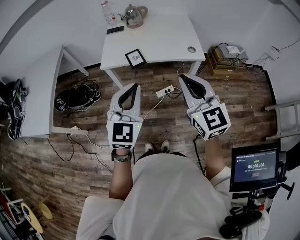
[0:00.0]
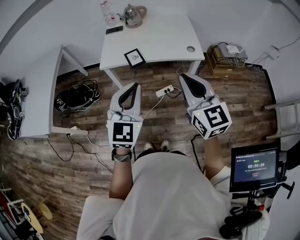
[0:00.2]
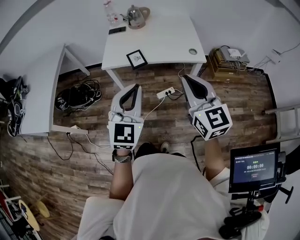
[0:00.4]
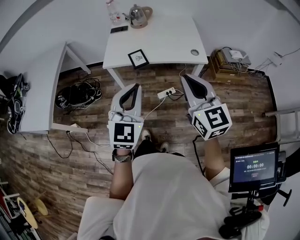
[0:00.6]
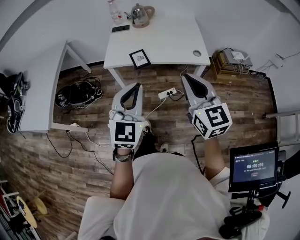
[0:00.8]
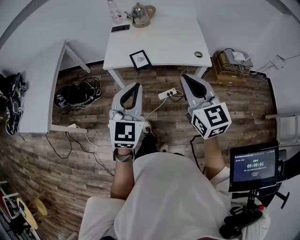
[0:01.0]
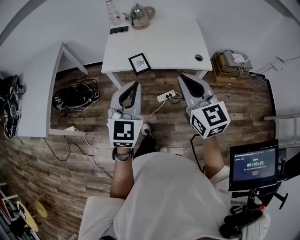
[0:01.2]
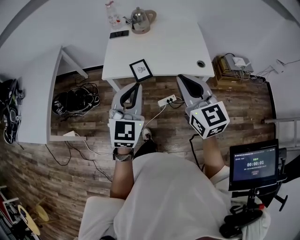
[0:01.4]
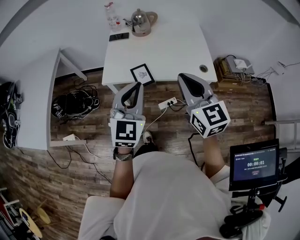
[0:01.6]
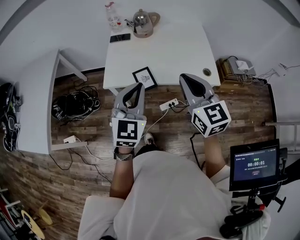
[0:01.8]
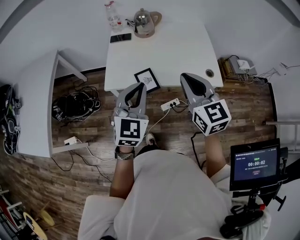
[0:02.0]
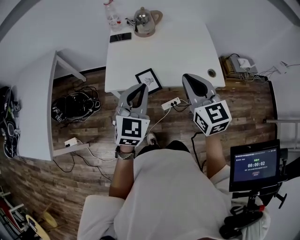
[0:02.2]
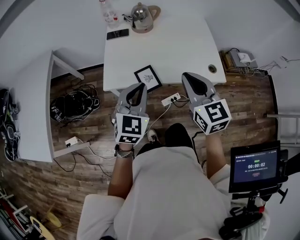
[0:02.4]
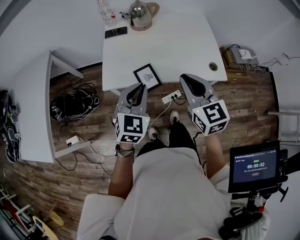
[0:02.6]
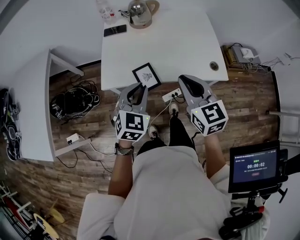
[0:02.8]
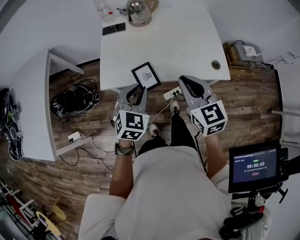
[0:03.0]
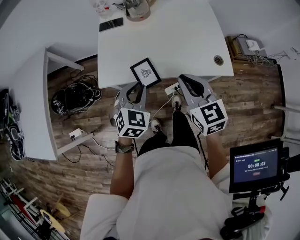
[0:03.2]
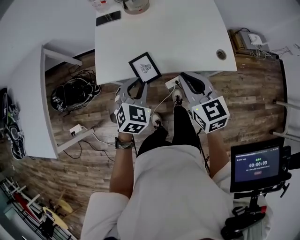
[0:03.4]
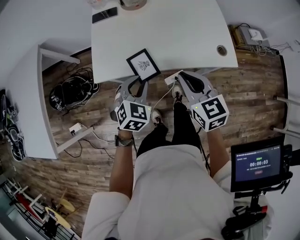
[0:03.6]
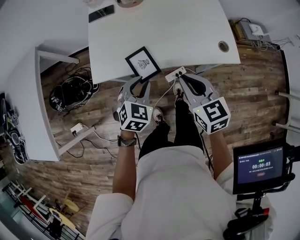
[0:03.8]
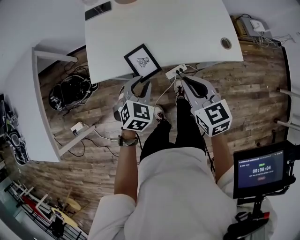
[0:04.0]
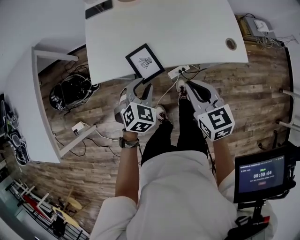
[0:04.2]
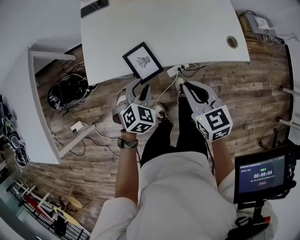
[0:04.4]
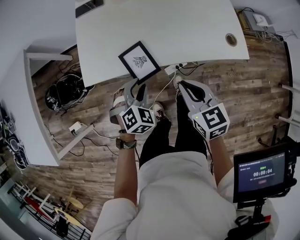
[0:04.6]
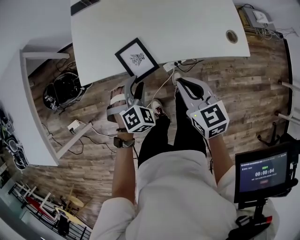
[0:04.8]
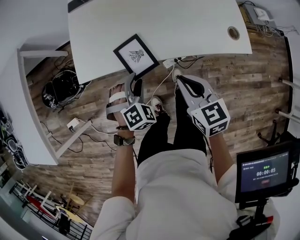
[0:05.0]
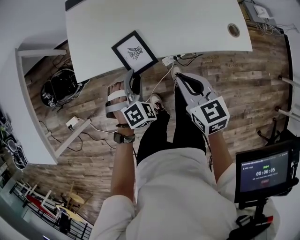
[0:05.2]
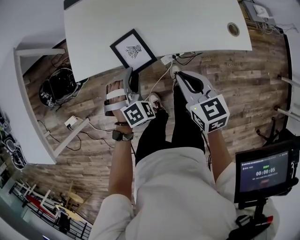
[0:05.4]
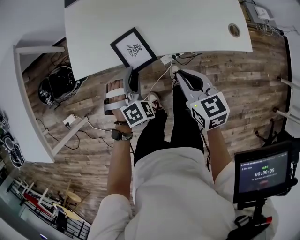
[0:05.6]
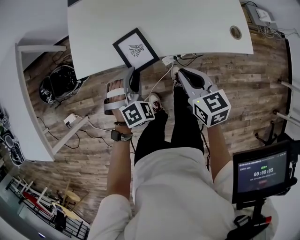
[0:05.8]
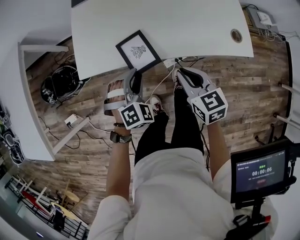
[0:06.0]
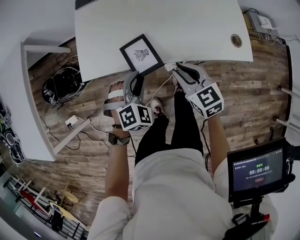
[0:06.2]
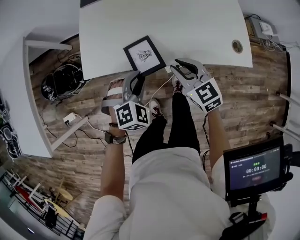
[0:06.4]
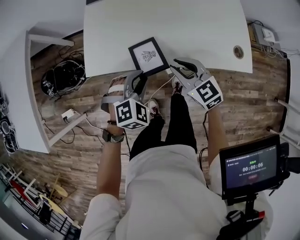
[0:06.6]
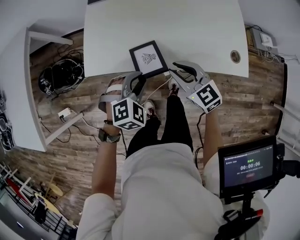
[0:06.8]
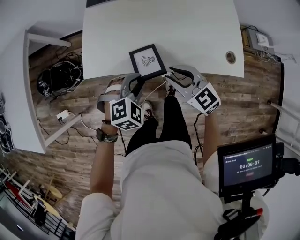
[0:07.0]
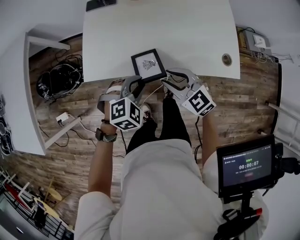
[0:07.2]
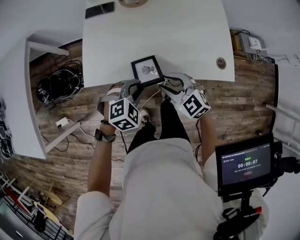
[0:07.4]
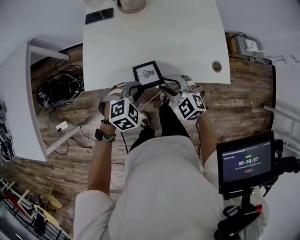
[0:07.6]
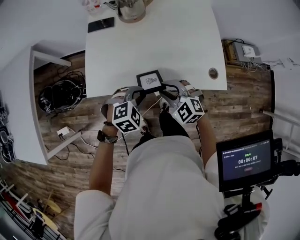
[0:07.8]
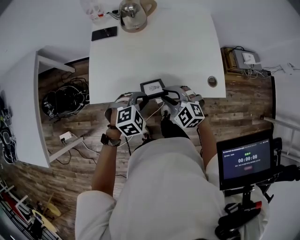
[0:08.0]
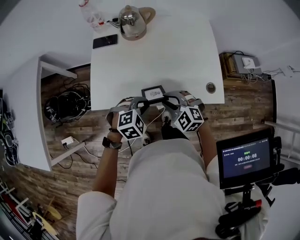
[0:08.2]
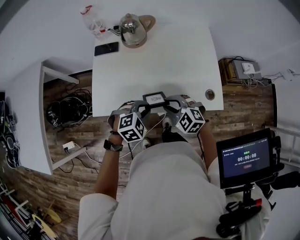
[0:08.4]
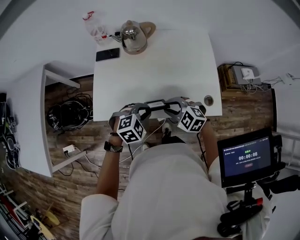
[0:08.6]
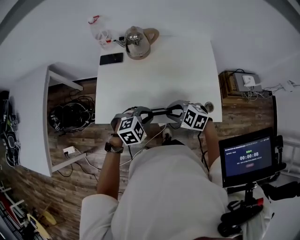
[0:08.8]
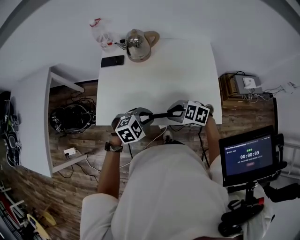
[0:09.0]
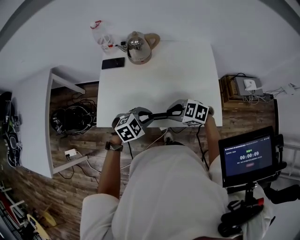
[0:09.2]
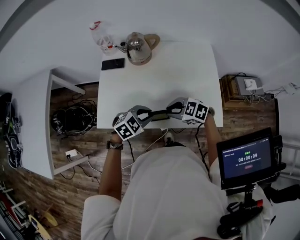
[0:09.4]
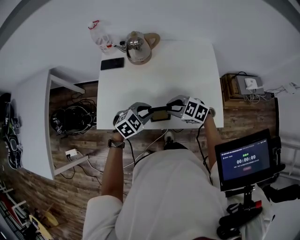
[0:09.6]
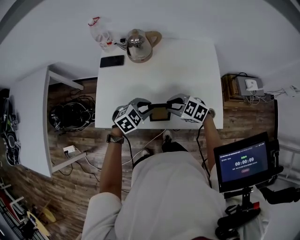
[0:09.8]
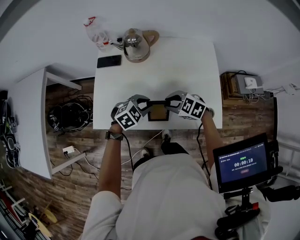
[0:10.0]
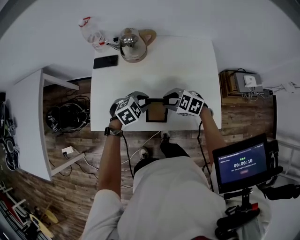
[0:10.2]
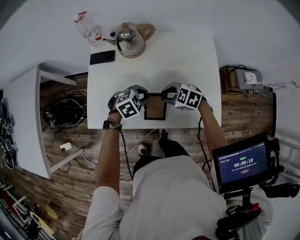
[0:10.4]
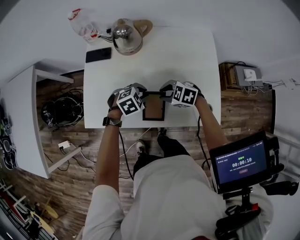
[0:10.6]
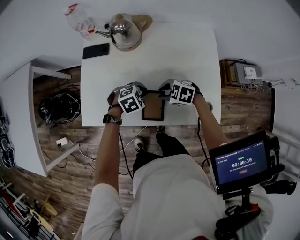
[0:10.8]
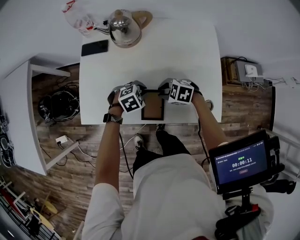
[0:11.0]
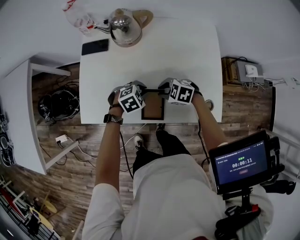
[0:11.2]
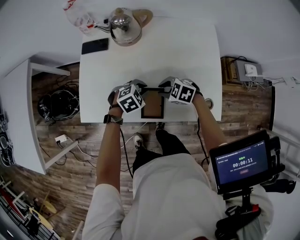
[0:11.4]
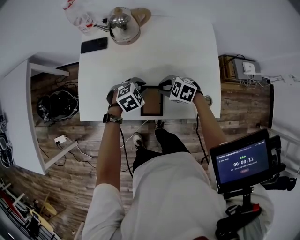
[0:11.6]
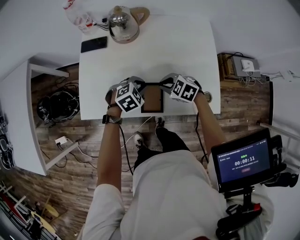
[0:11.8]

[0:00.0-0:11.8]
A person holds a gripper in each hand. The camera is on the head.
0:00.0 to 0:01.4: The grippers both shift forward by roughly 15 cm.
0:01.4 to 0:03.0: Both grippers move forward and downward, about 25 cm. The left gripper swivels approximately 30 degrees.
0:03.0 to 0:04.4: Both grippers travel together downward, roughly 20 cm. The left gripper turns by approximately 20 degrees.
0:04.4 to 0:06.0: The right gripper moves downward, some 5 cm; the left gripper swivels approximately 20 degrees.
0:06.0 to 0:07.4: The right gripper moves some 5 cm, rotates some 40 degrees, and opens up, while the left gripper moves upward, some 5 cm, and rotates roughly 20 degrees.
0:07.4 to 0:08.8: The right gripper ends up approximately 10 cm from where it was, and turns by roughly 20 degrees. Meanwhile the left gripper shifts by approximately 10 cm.
0:08.8 to 0:10.4: The left gripper ends up roughly 10 cm from where it was. Meanwhile the right gripper changes place by about 10 cm.
0:10.4 to 0:11.8: The right gripper closes up.

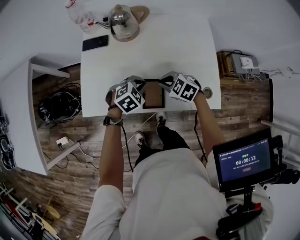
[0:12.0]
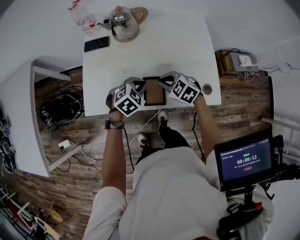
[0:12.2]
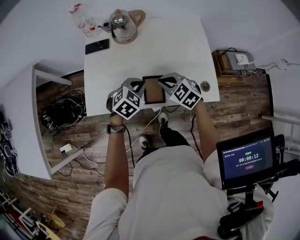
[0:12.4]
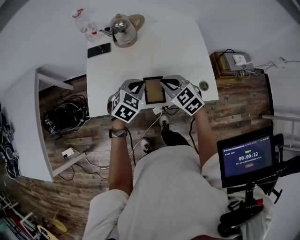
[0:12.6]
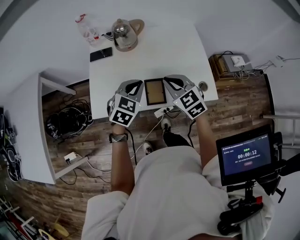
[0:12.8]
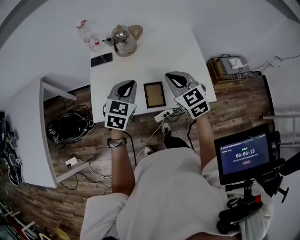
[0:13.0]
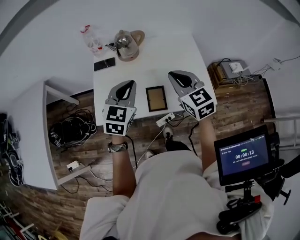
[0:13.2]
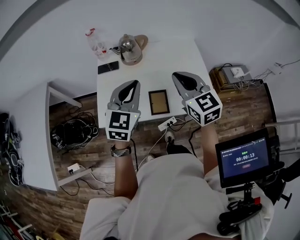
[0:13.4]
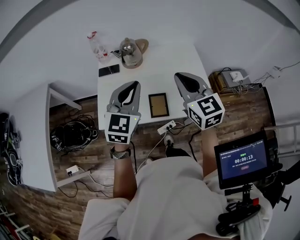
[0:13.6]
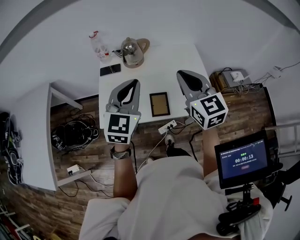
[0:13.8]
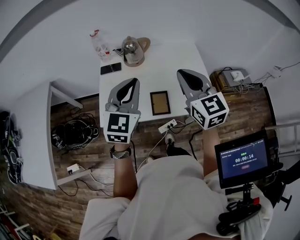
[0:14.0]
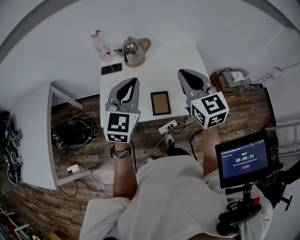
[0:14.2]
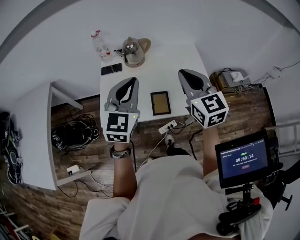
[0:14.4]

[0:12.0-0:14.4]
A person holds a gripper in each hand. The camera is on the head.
0:12.0 to 0:13.2: The grippers both shift upward by some 25 cm. The left gripper angles its fingers upward, by approximately 40 degrees. Meanwhile the right gripper tips its fingers upward by about 30 degrees.
0:13.2 to 0:14.4: Both grippers move upward, about 10 cm.

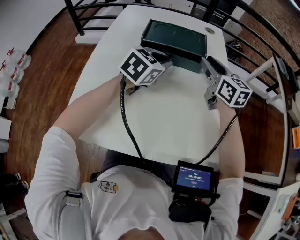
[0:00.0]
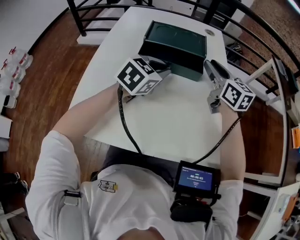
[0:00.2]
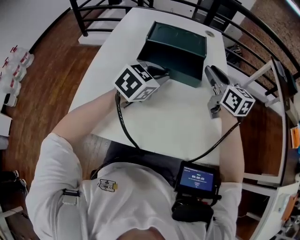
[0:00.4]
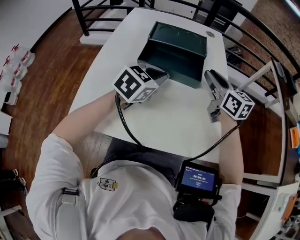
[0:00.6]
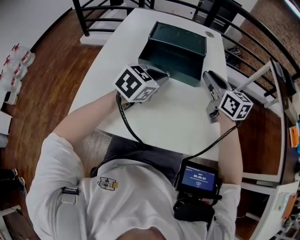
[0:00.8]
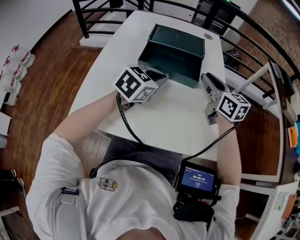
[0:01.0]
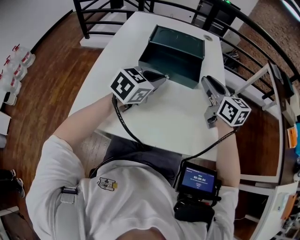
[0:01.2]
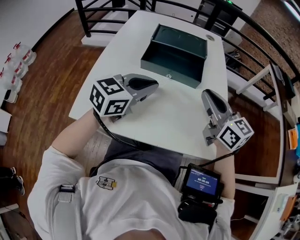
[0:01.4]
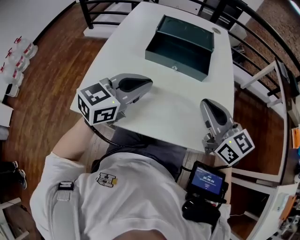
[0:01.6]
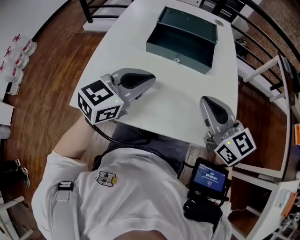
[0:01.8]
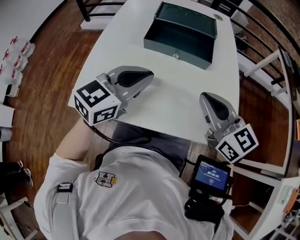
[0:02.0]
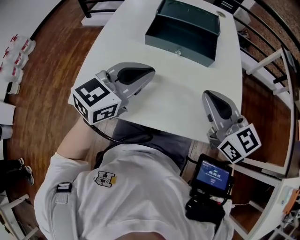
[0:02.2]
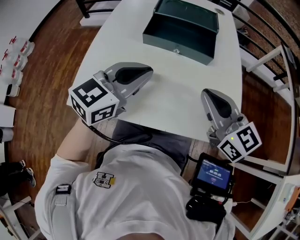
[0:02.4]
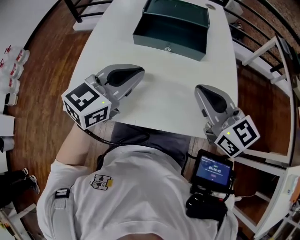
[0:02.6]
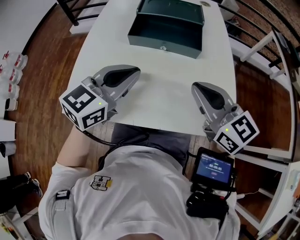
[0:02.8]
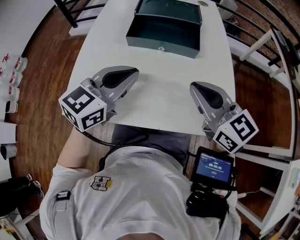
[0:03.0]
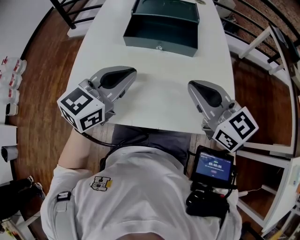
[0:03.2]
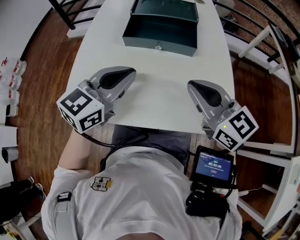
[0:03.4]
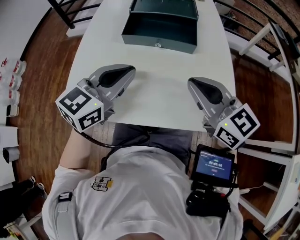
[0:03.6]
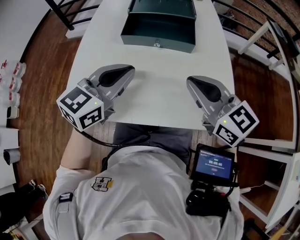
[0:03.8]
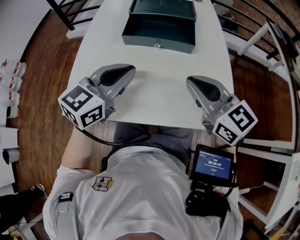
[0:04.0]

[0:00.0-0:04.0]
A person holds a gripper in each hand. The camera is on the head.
0:00.0 to 0:01.4: Both grippers move backward, about 20 cm. The right gripper closes.
0:01.4 to 0:02.6: The right gripper travels backward by about 5 cm.
0:02.6 to 0:04.0: The two grippers keep their place.

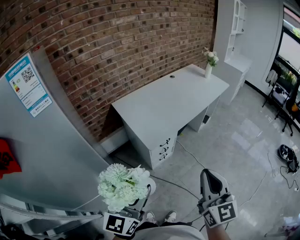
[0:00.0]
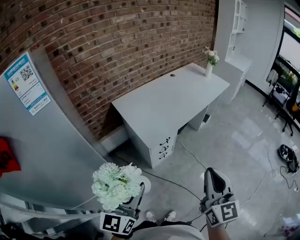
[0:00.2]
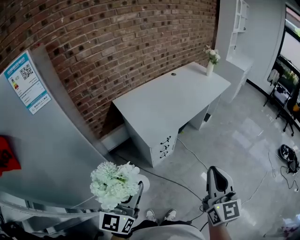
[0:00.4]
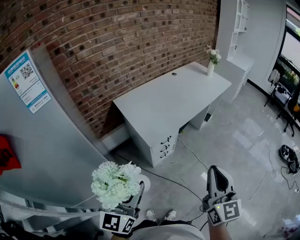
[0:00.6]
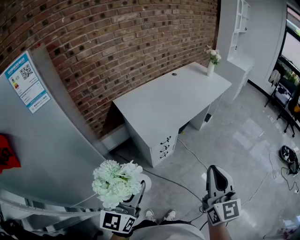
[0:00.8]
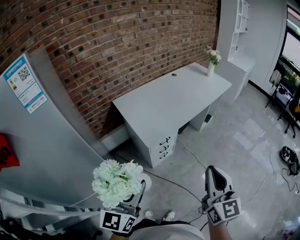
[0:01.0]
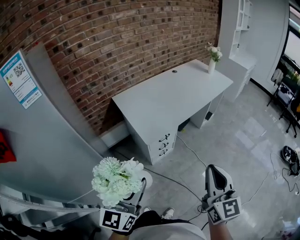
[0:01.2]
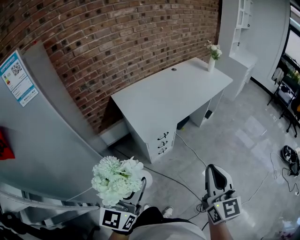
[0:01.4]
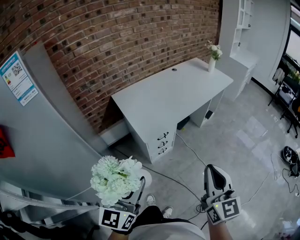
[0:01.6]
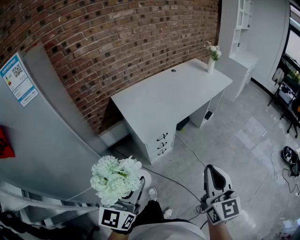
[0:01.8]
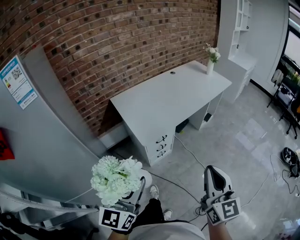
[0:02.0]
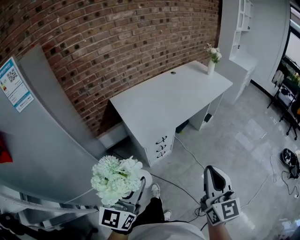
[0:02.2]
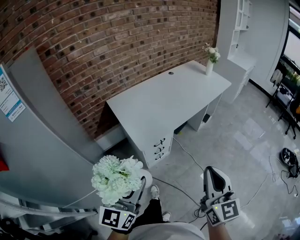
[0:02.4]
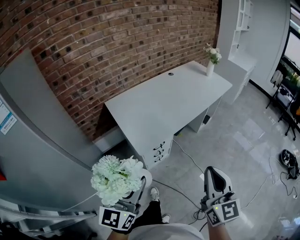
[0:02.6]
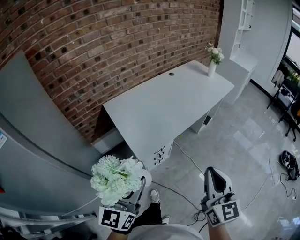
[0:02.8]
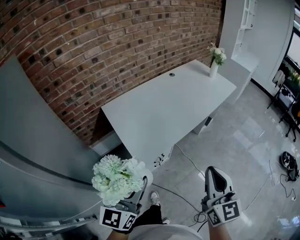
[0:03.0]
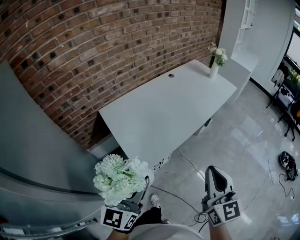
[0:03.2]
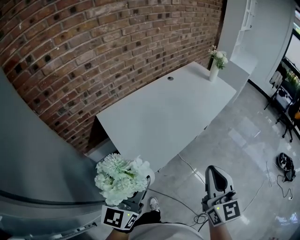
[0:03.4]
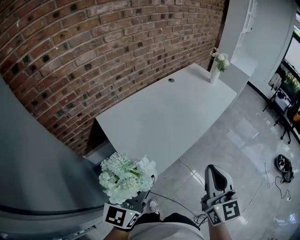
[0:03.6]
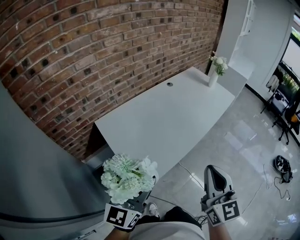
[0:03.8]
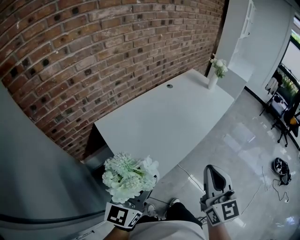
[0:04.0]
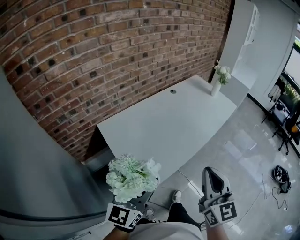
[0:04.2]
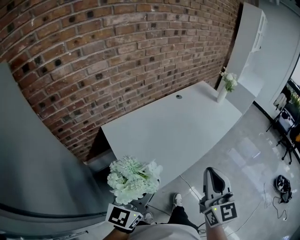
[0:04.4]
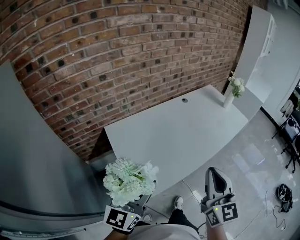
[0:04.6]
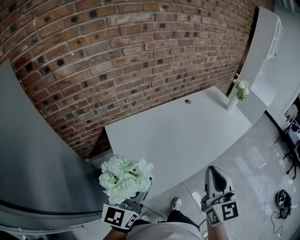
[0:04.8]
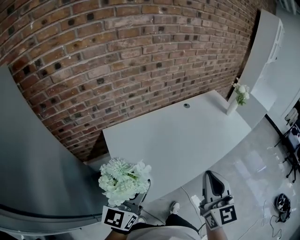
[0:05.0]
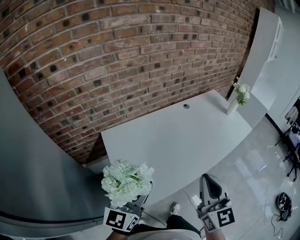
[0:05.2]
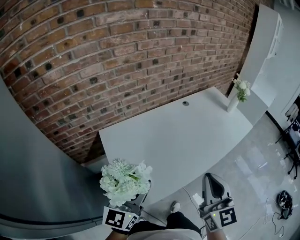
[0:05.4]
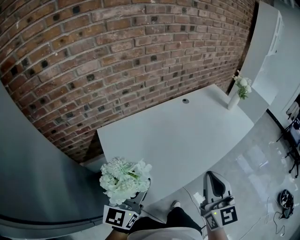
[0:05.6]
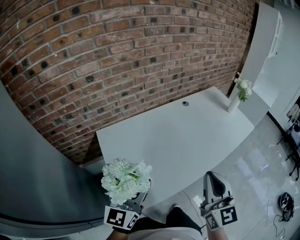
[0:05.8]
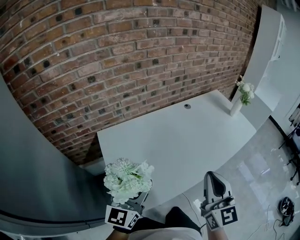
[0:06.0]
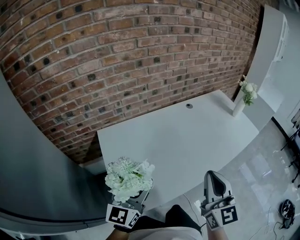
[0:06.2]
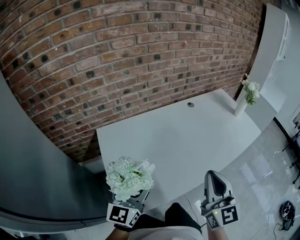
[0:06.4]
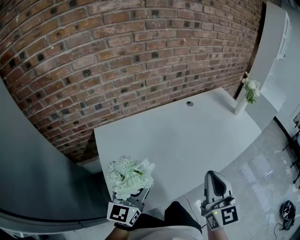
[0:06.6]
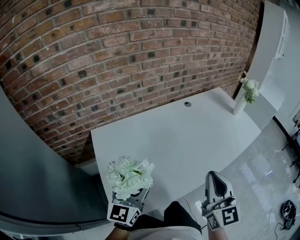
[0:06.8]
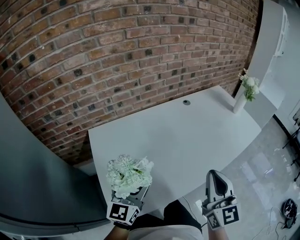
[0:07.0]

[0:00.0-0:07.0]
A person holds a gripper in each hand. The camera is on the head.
0:00.0 to 0:01.4: The right gripper is displaced to the right by approximately 5 cm.
0:01.4 to 0:02.8: The two grippers go roughly 15 cm forward.
0:02.8 to 0:04.2: The right gripper is displaced forward and to the left by roughly 20 cm; the left gripper travels forward by some 20 cm.
0:04.2 to 0:05.6: The left gripper travels forward and downward by roughly 10 cm. Meanwhile the right gripper is displaced forward and to the right by roughly 15 cm.
0:05.6 to 0:07.0: Both grippers travel together downward, forward and to the right, approximately 15 cm.
